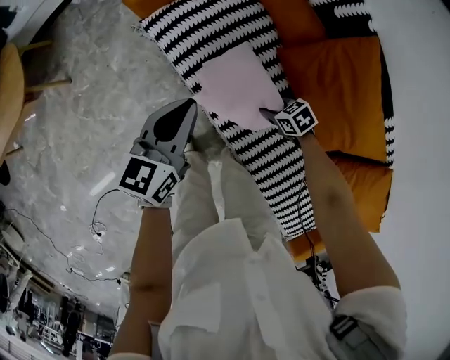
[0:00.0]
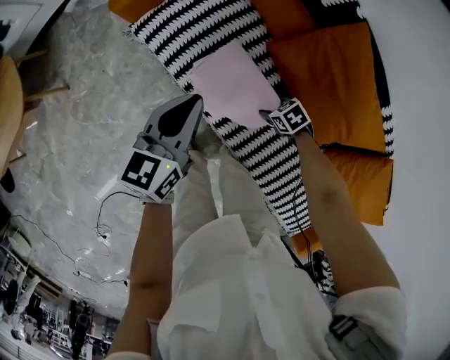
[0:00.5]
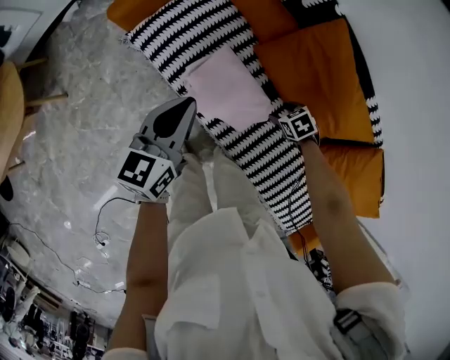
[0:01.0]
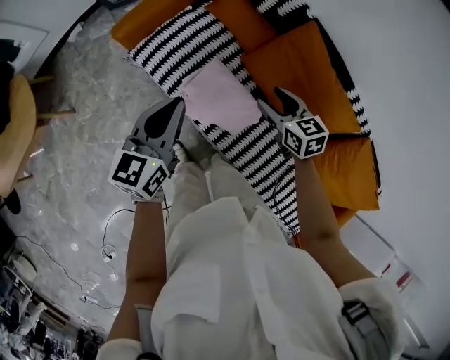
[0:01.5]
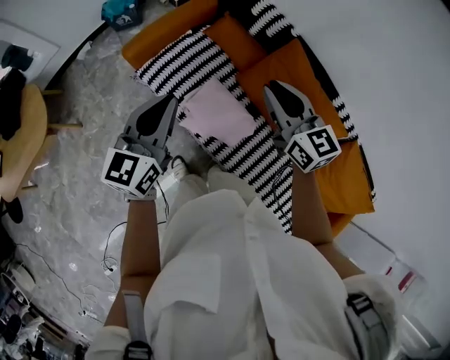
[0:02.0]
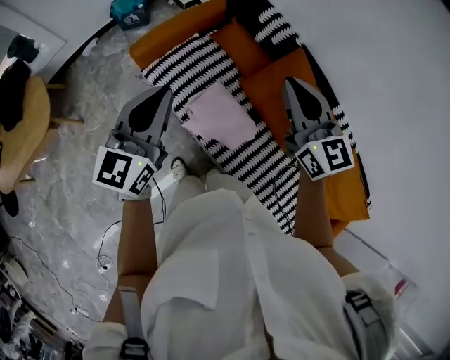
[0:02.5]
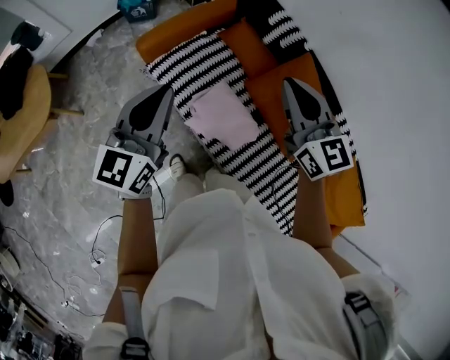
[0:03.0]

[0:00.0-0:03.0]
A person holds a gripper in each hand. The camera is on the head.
0:00.0 to 0:01.5: The left gripper moves upward, some 15 cm; the right gripper travels upward by roughly 30 cm, changes its angle by approximately 50 degrees, and opens up.
0:01.5 to 0:03.0: The right gripper goes some 30 cm upward, changes its angle by roughly 30 degrees, and closes its fingers. Meanwhile the left gripper goes some 15 cm upward and to the left.

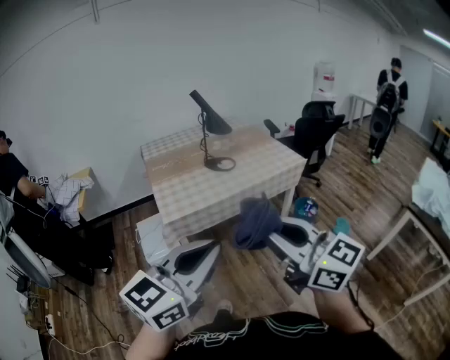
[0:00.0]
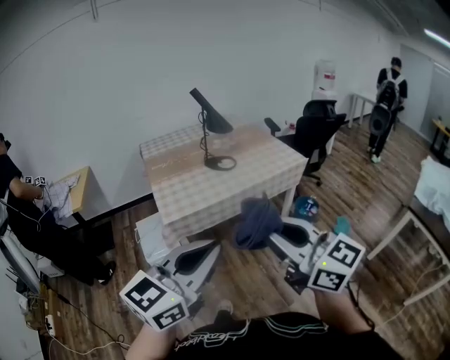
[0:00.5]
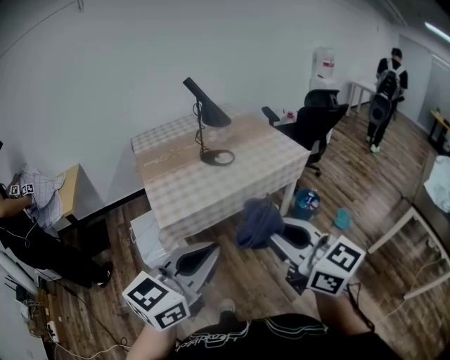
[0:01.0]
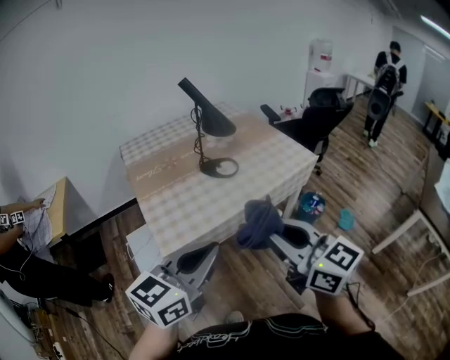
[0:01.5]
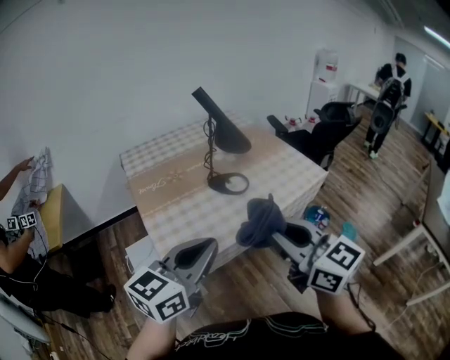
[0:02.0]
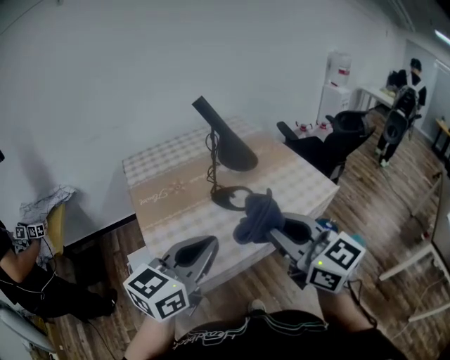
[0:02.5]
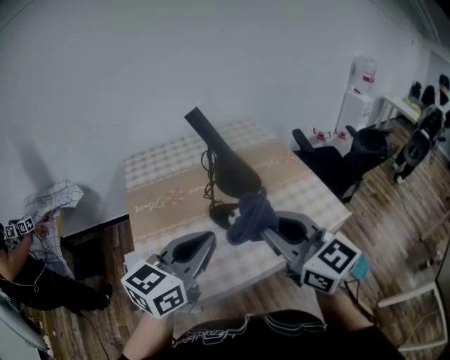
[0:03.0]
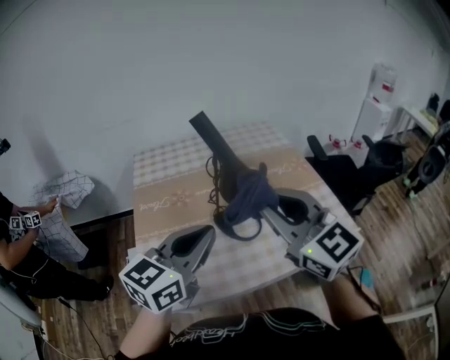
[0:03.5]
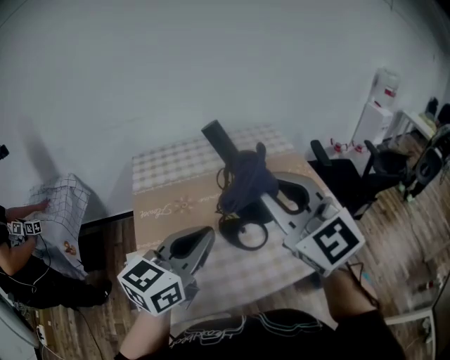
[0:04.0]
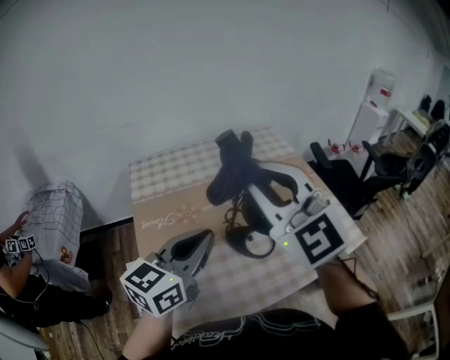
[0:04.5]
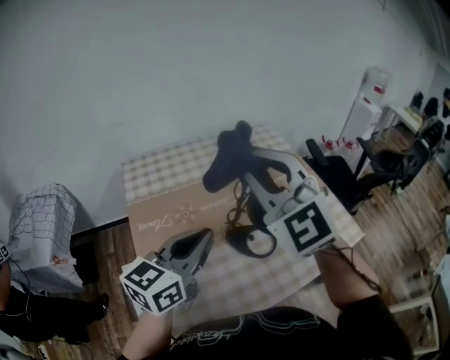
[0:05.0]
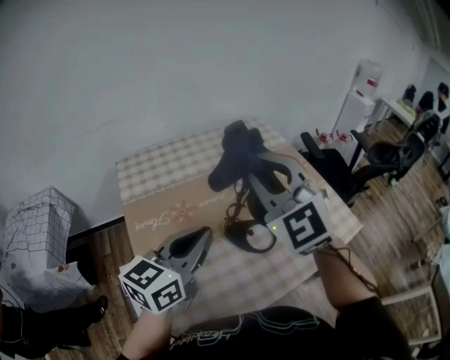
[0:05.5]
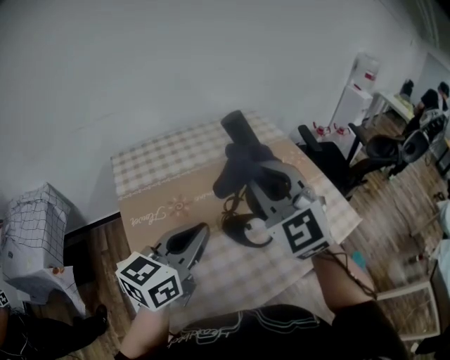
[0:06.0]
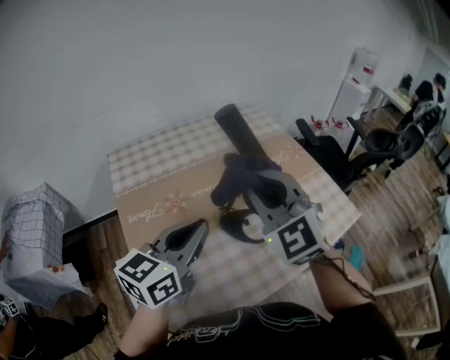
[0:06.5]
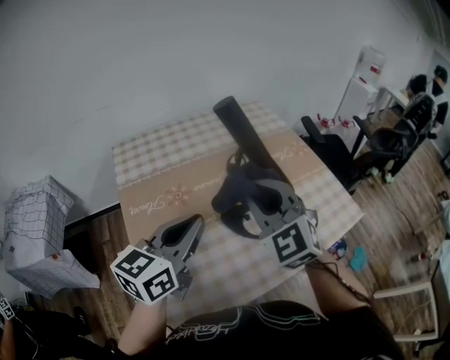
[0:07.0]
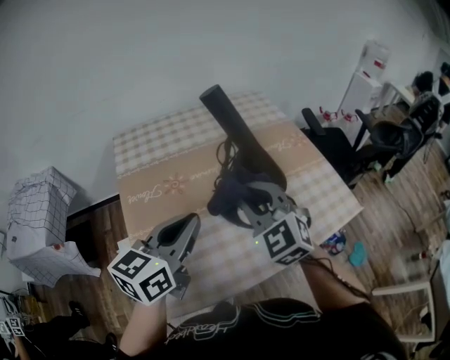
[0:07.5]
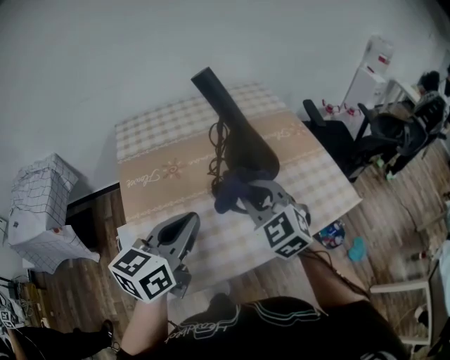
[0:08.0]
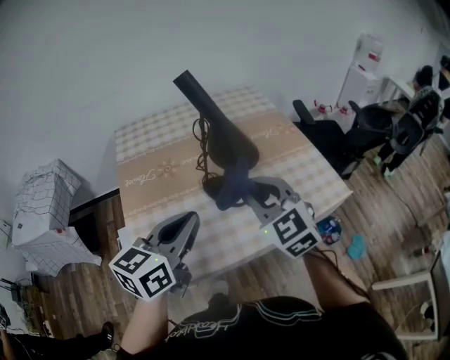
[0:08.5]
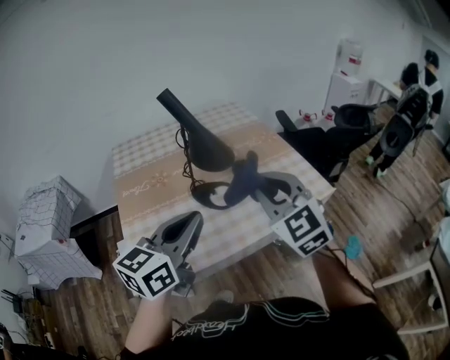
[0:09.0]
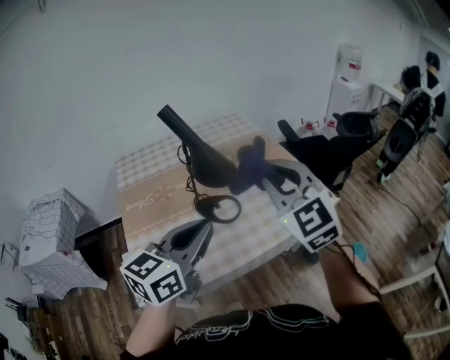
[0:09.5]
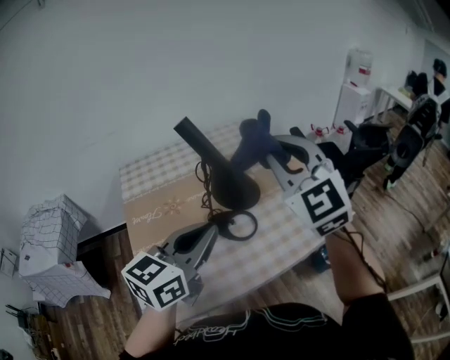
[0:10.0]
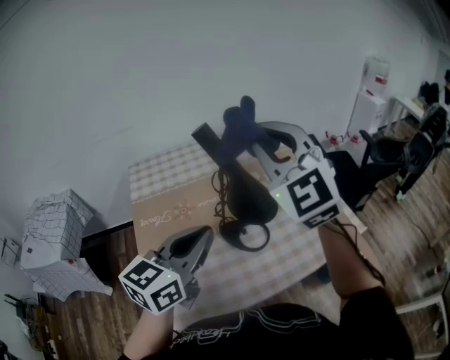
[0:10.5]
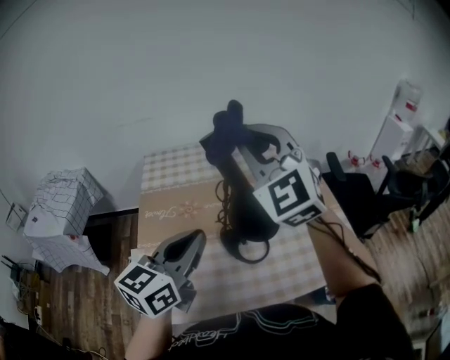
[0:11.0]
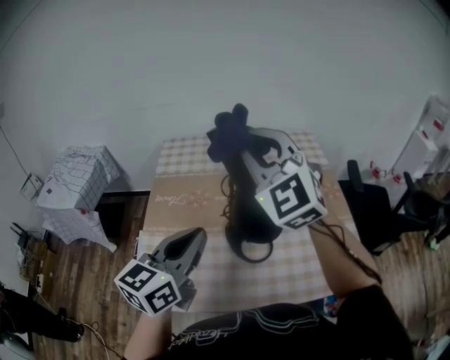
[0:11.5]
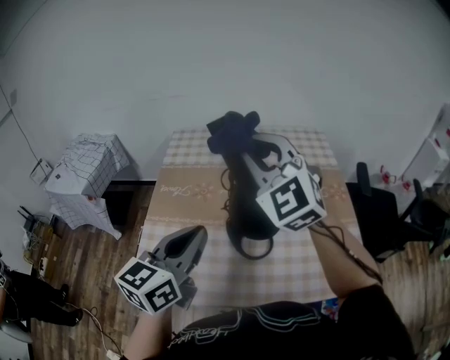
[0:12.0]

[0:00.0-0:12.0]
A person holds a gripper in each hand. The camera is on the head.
0:00.0 to 0:02.0: The two grippers go roughly 35 cm forward.
0:02.0 to 0:04.0: Both grippers move forward, some 35 cm. The right gripper rotates roughly 30 degrees.
0:04.0 to 0:06.0: The left gripper heads to the left, forward and downward, covering approximately 15 cm; the right gripper goes roughly 15 cm forward, to the left and downward, and changes its angle by roughly 30 degrees.
0:06.0 to 0:08.0: The right gripper is displaced downward and backward by some 15 cm, while the left gripper goes about 5 cm backward.
0:08.0 to 0:10.0: The left gripper heads upward and to the right, covering about 10 cm; the right gripper is displaced upward and to the right by about 25 cm, and changes its angle by some 30 degrees.
0:10.0 to 0:12.0: The left gripper moves about 5 cm, and rotates roughly 30 degrees, while the right gripper shifts by some 15 cm, and swivels about 30 degrees.

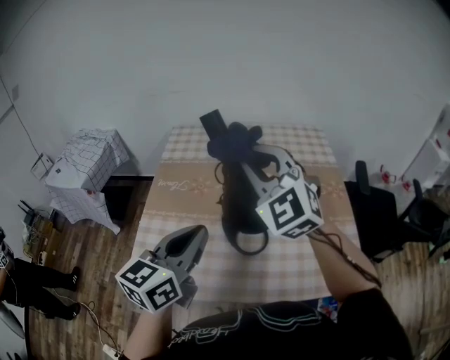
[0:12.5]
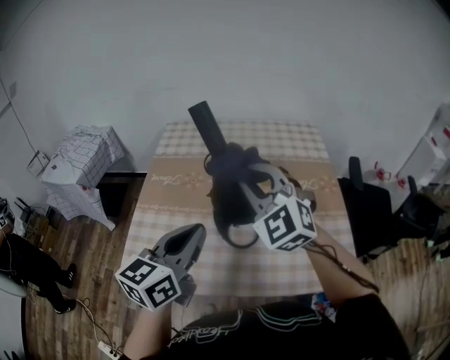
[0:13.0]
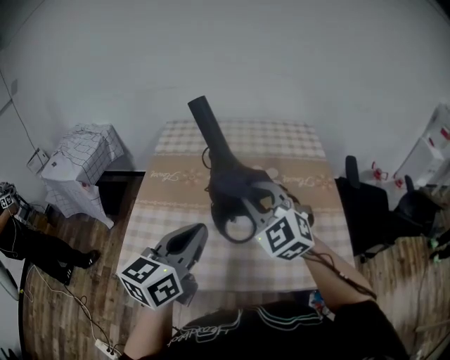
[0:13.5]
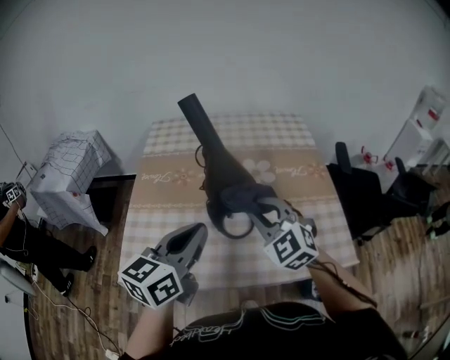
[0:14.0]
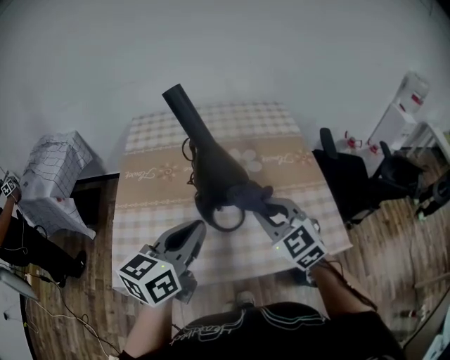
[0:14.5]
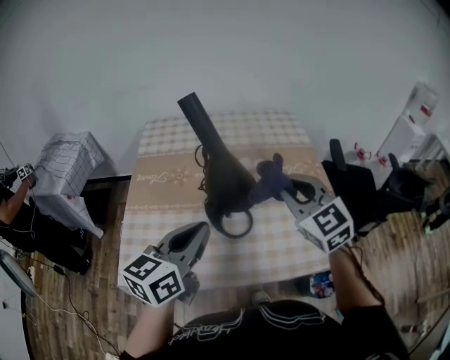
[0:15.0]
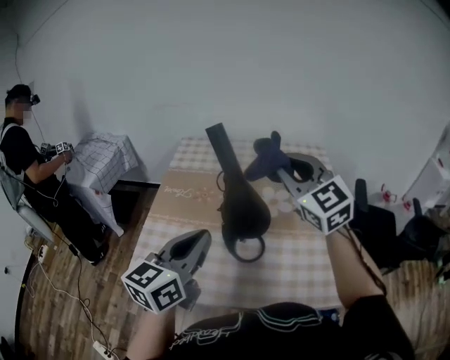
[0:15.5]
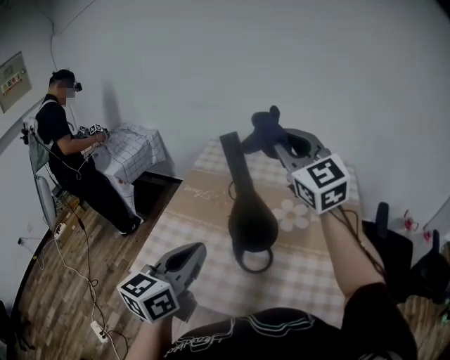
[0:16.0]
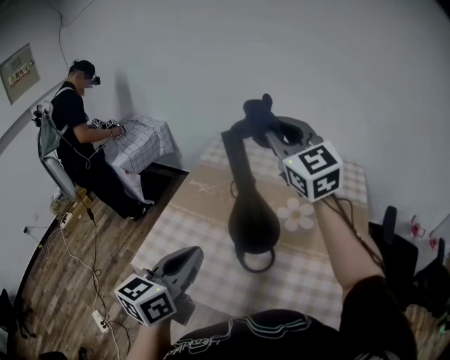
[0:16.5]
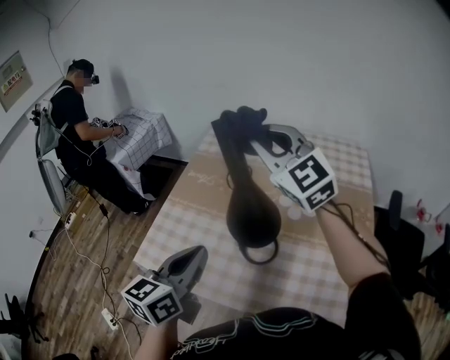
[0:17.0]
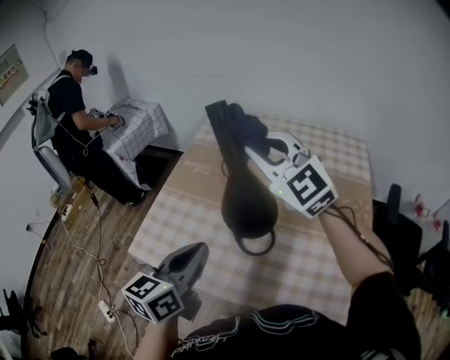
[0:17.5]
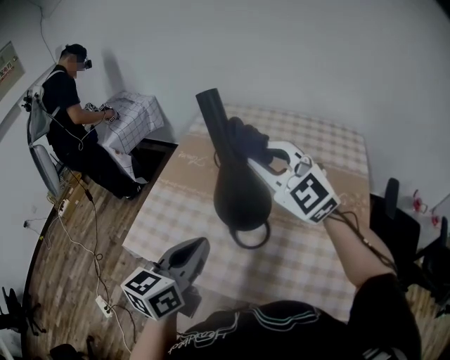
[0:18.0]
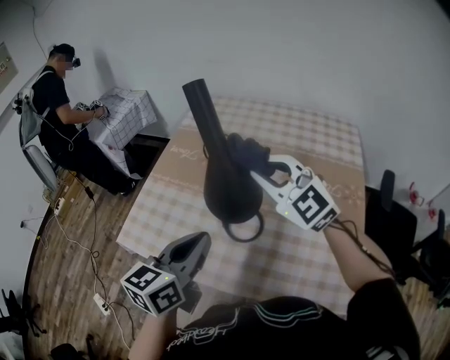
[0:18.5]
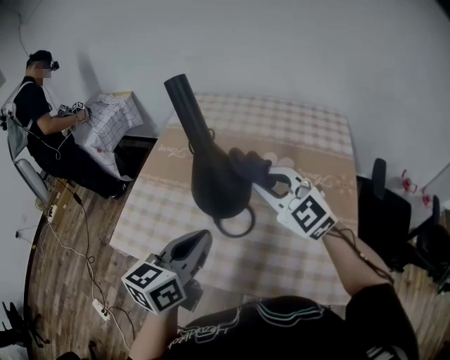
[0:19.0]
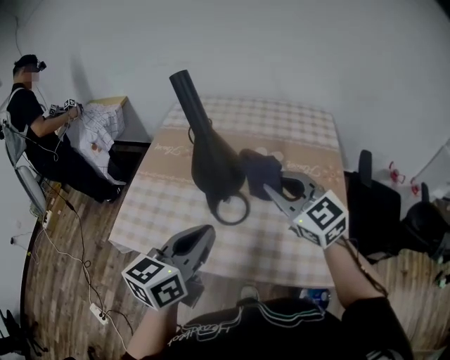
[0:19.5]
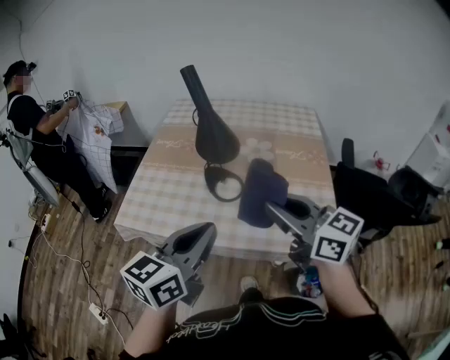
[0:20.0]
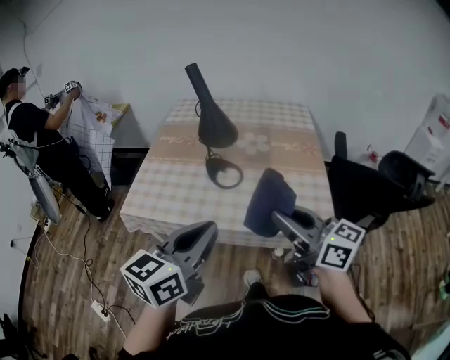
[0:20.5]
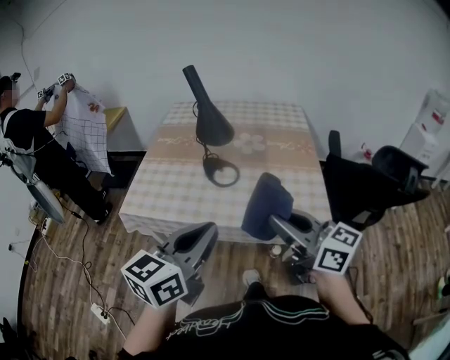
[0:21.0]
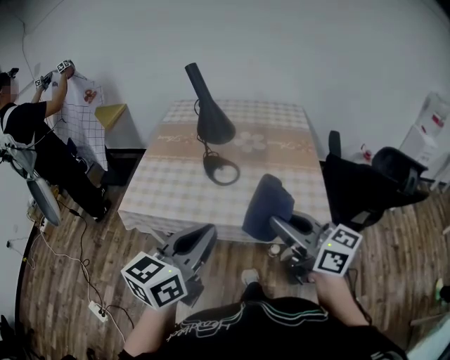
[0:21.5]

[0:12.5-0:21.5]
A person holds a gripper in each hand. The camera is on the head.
0:12.5 to 0:14.5: The left gripper moves roughly 5 cm, while the right gripper moves downward, backward and to the right, approximately 25 cm, and changes its angle by about 30 degrees.
0:14.5 to 0:17.0: The left gripper turns by approximately 30 degrees, while the right gripper is displaced upward by approximately 20 cm, and turns by about 40 degrees.
0:17.0 to 0:19.5: The left gripper heads to the right and backward, covering roughly 10 cm. The right gripper goes roughly 25 cm backward, downward and to the right, and rotates some 20 degrees.
0:19.5 to 0:21.5: The grippers both shift backward by roughly 30 cm. The right gripper rotates approximately 40 degrees.

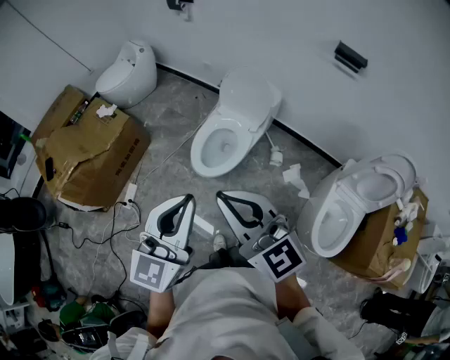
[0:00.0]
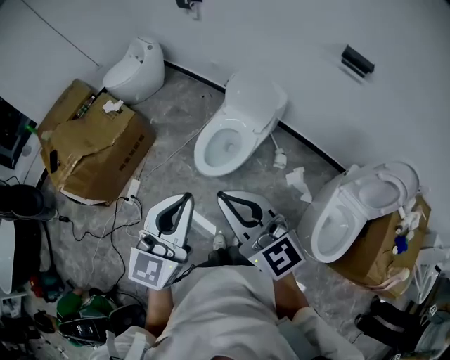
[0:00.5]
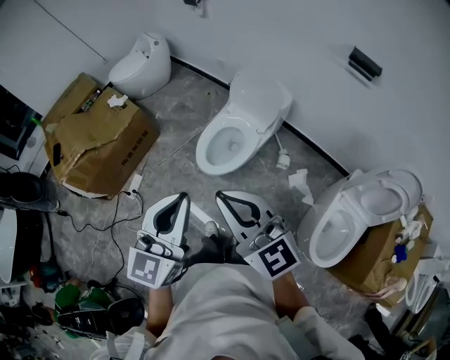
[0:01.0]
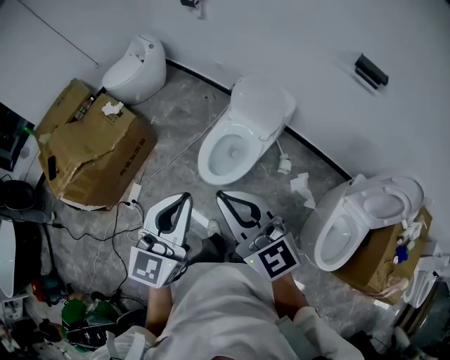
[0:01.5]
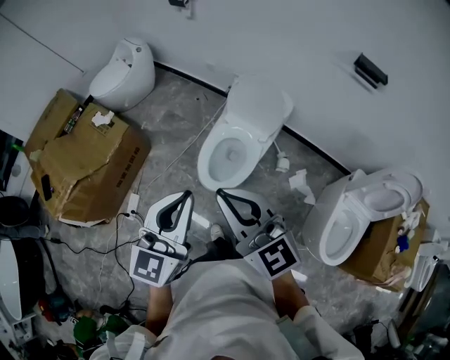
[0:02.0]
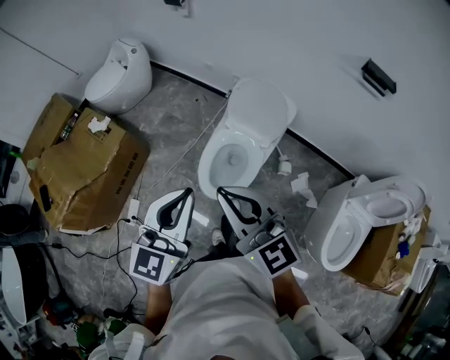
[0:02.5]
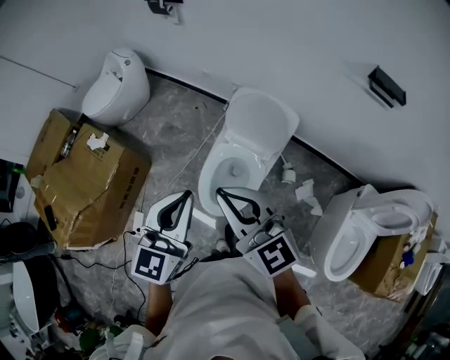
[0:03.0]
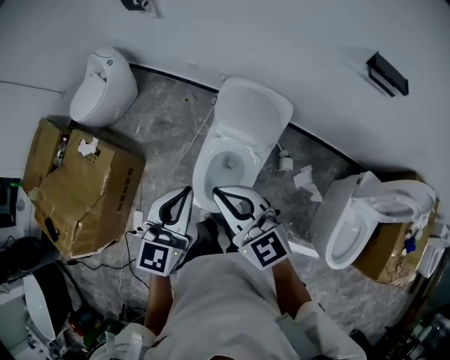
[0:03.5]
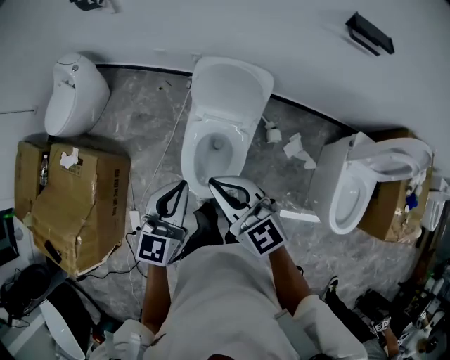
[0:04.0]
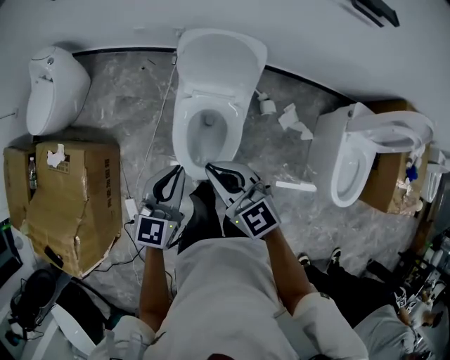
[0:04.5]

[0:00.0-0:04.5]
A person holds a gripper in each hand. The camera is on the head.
0:00.0 to 0:02.0: The grippers both shift forward by about 15 cm.
0:02.0 to 0:04.5: Both grippers travel together forward and downward, about 35 cm. The right gripper swivels some 30 degrees, while the left gripper changes its angle by approximately 30 degrees.
